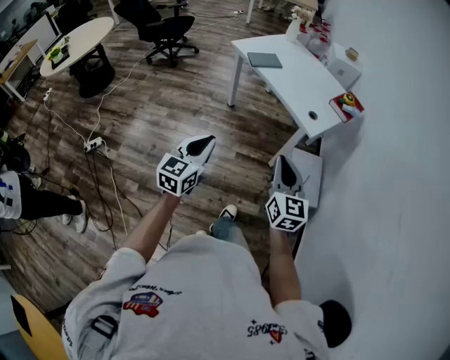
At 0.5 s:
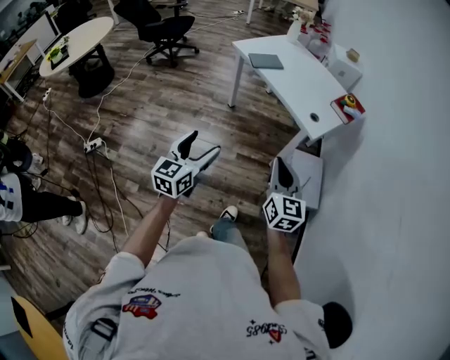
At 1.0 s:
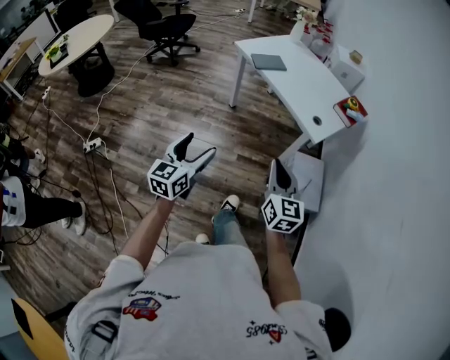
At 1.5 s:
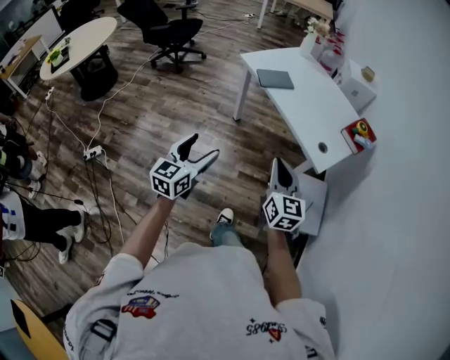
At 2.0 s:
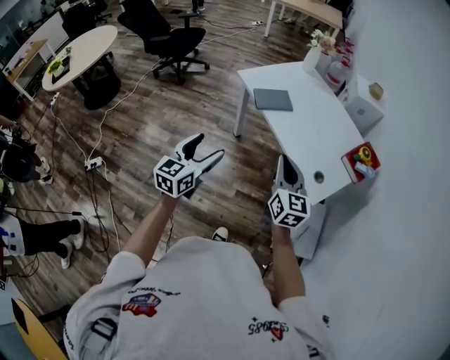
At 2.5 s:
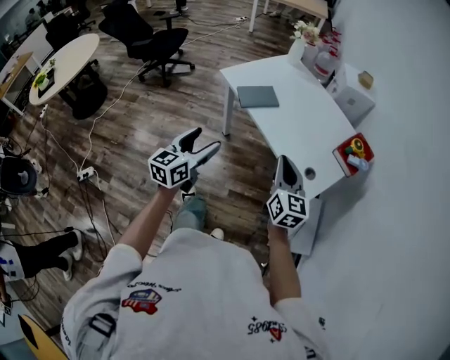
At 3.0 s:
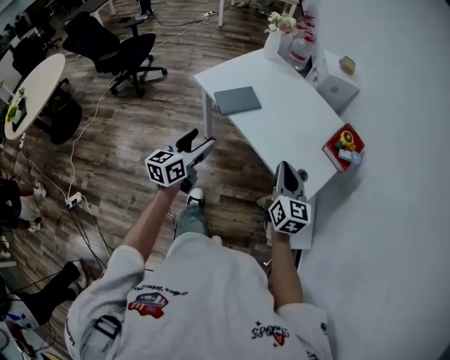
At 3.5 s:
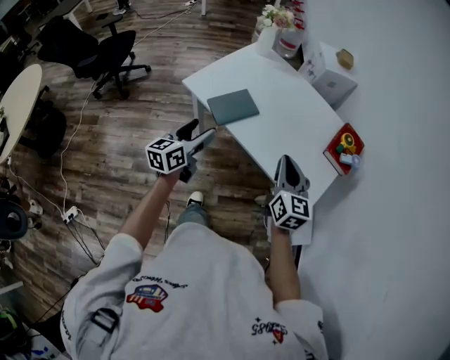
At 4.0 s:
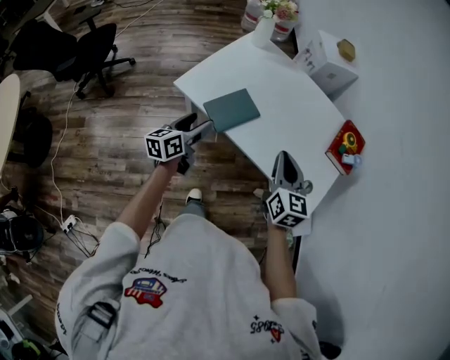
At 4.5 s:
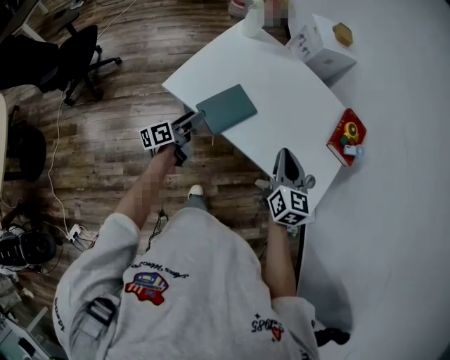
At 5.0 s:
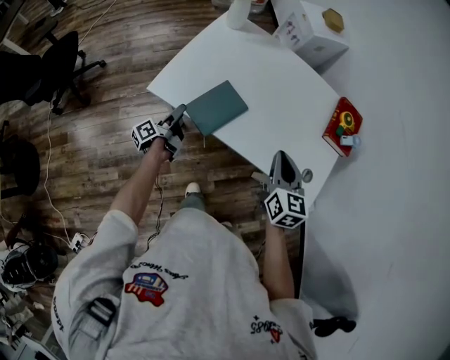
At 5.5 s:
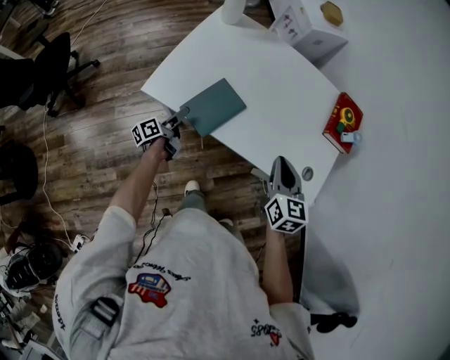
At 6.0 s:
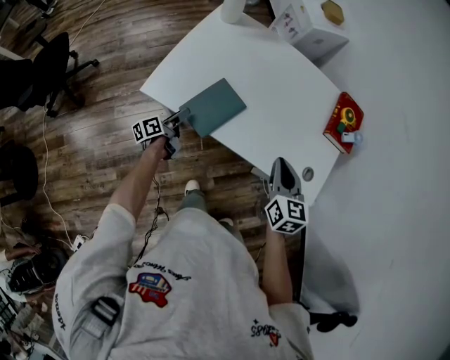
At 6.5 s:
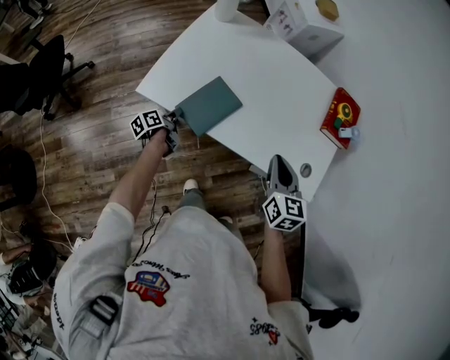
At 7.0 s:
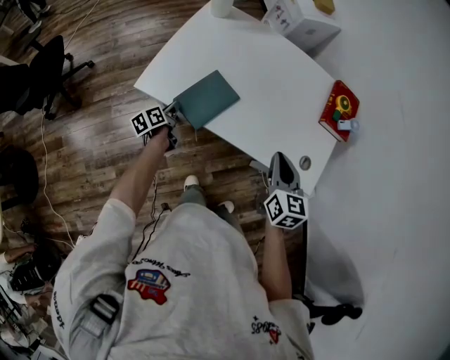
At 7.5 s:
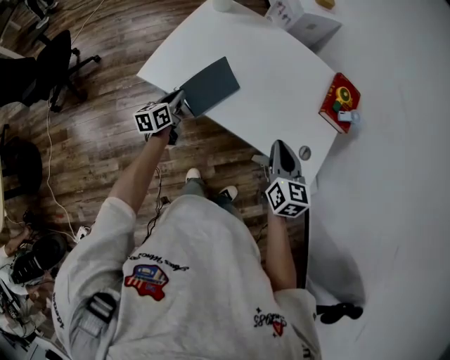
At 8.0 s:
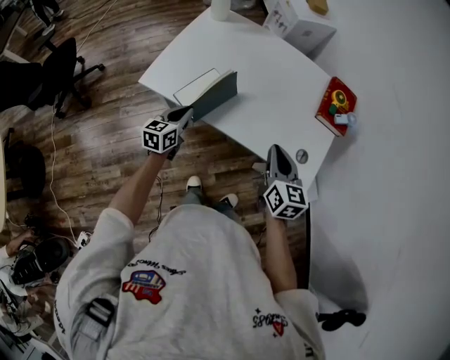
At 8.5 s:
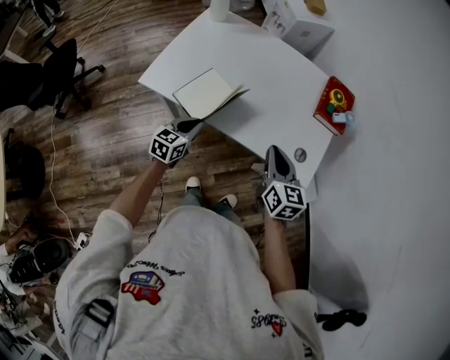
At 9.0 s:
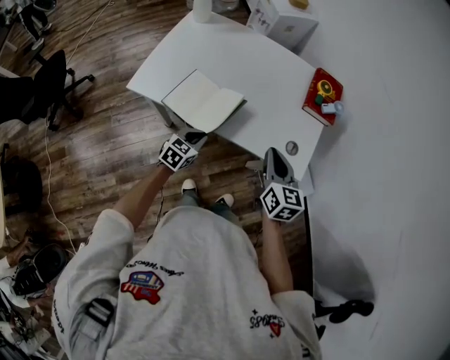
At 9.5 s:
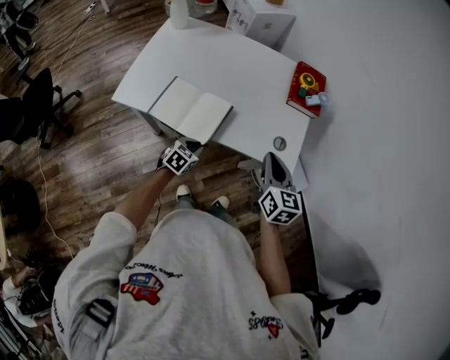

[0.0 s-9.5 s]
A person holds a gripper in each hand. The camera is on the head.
0.0 to 2.0 s: Both grippers move forward, roughly 40 cm. The left gripper opens.
2.0 to 4.0 s: The right gripper ends up roughly 35 cm from where it was, and rotates some 30 degrees; the left gripper shifts by about 50 cm, and turns by some 40 degrees.
4.0 to 5.5 s: The right gripper goes some 10 cm downward and forward. The left gripper travels downward and forward by about 25 cm, and swivels some 40 degrees.
5.5 to 7.5 s: The left gripper travels upward by some 5 cm, turns by approximately 40 degrees, and closes up, while the right gripper ends up roughly 5 cm from where it was.
7.5 to 9.5 s: The left gripper is displaced to the right by approximately 25 cm, and turns by some 60 degrees, while the right gripper shifts approximately 15 cm to the right and backward.

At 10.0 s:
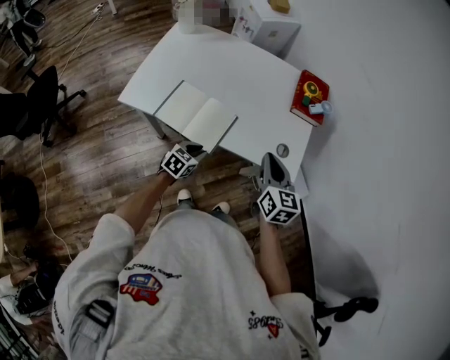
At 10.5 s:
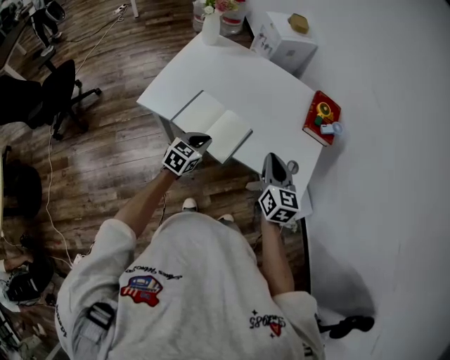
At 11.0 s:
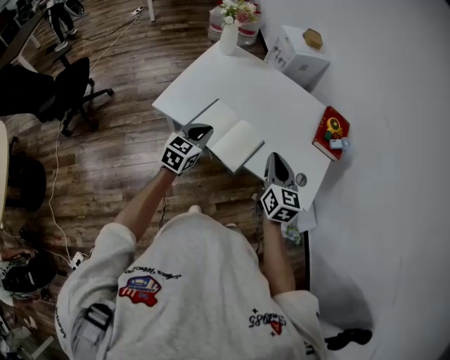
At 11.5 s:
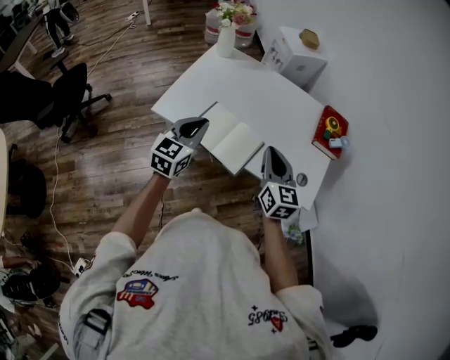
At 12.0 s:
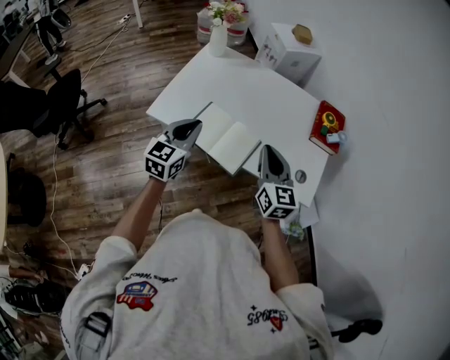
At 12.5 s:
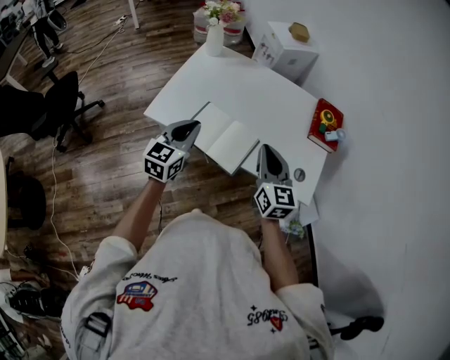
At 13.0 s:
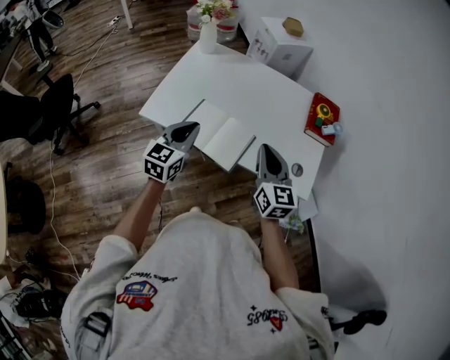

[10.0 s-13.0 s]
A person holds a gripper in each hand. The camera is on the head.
10.0 to 11.5 s: The left gripper travels upward and to the left by some 30 cm, and turns by some 40 degrees; the right gripper moves to the left, some 15 cm.
11.5 to 13.0 s: There are only small adjustments of the grippers.

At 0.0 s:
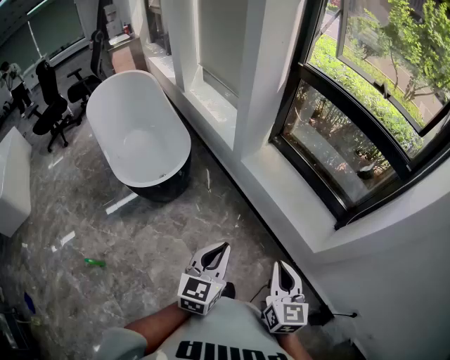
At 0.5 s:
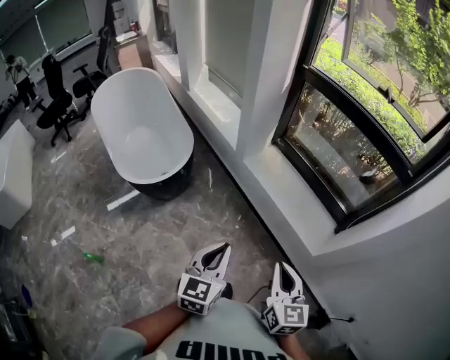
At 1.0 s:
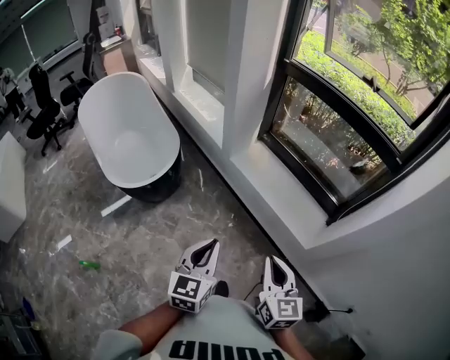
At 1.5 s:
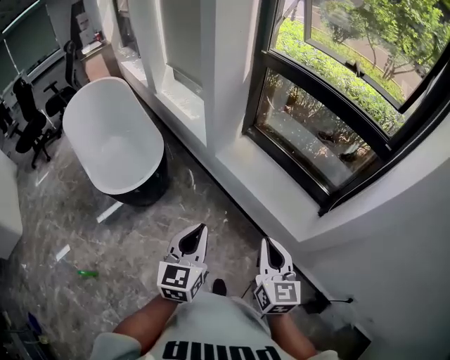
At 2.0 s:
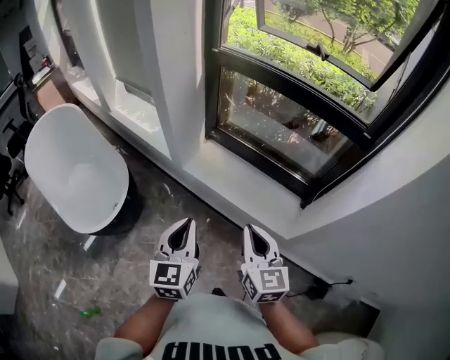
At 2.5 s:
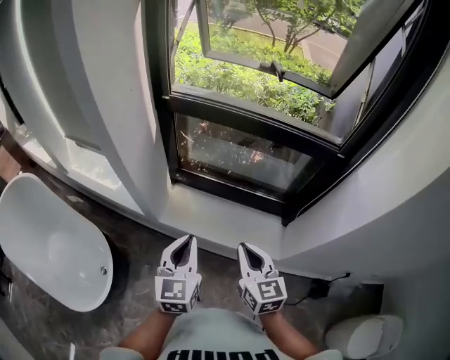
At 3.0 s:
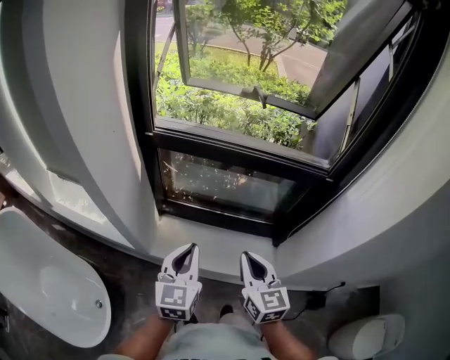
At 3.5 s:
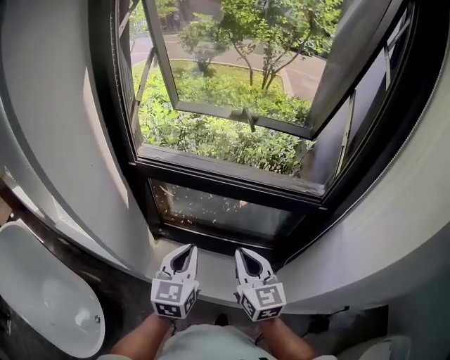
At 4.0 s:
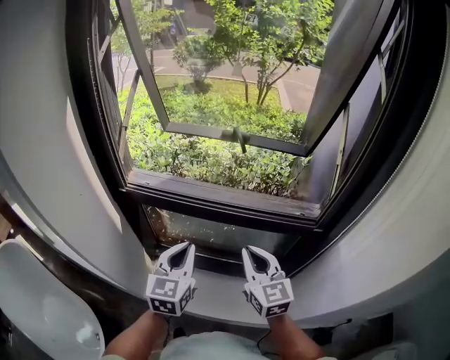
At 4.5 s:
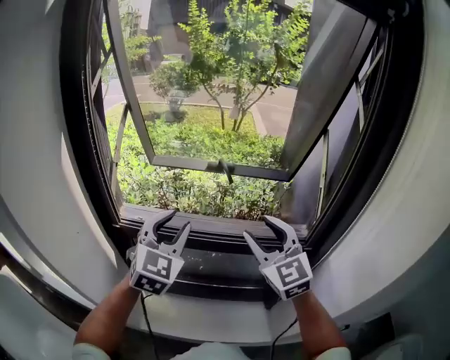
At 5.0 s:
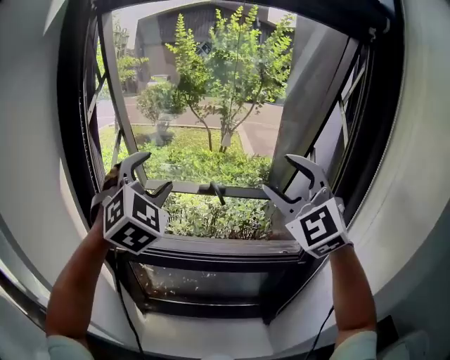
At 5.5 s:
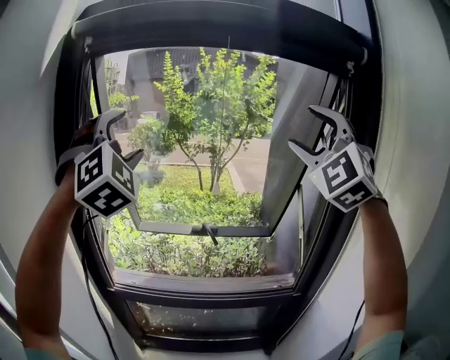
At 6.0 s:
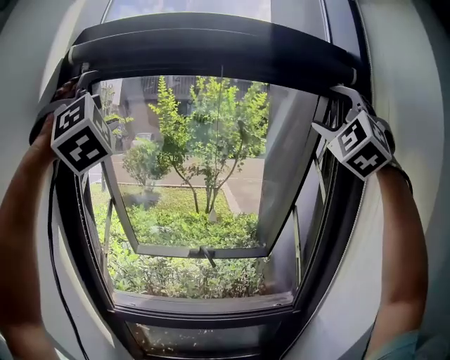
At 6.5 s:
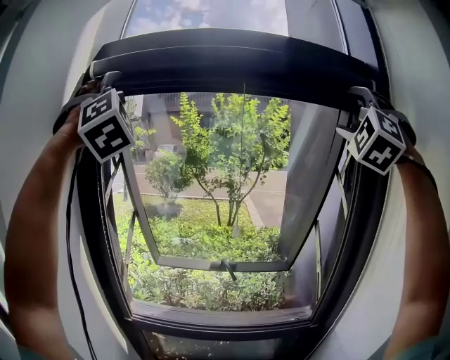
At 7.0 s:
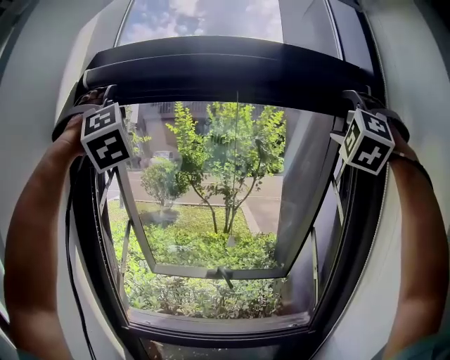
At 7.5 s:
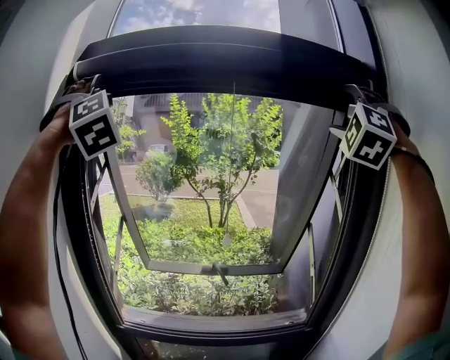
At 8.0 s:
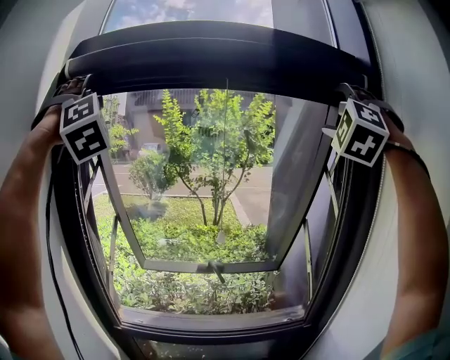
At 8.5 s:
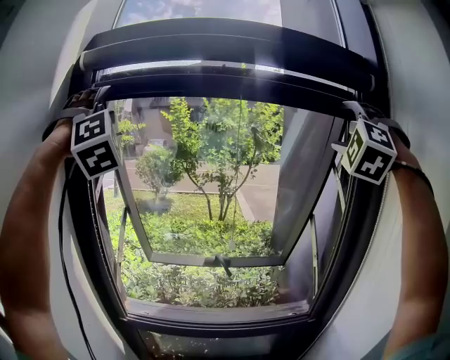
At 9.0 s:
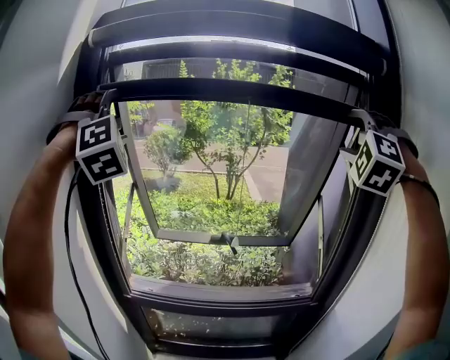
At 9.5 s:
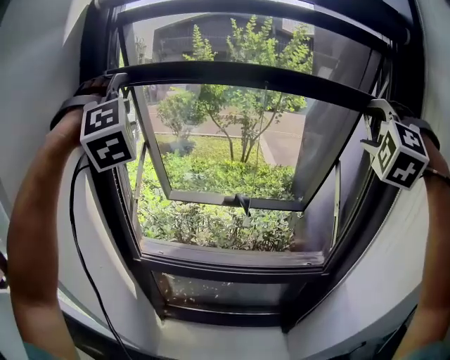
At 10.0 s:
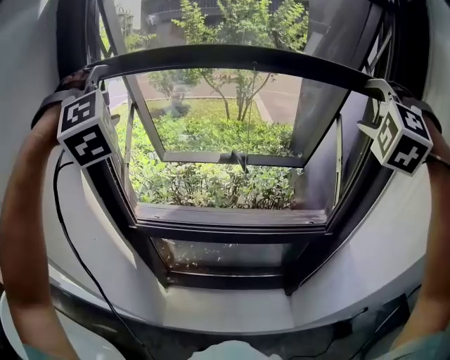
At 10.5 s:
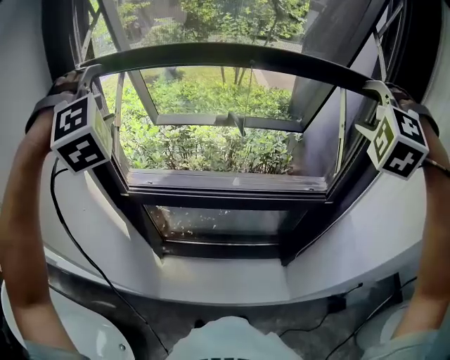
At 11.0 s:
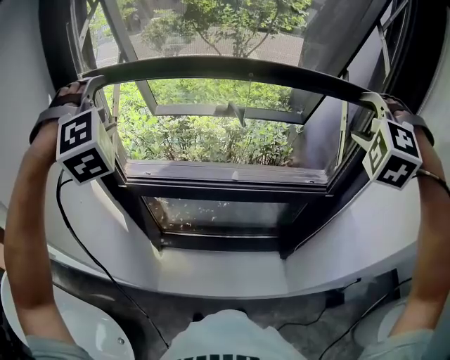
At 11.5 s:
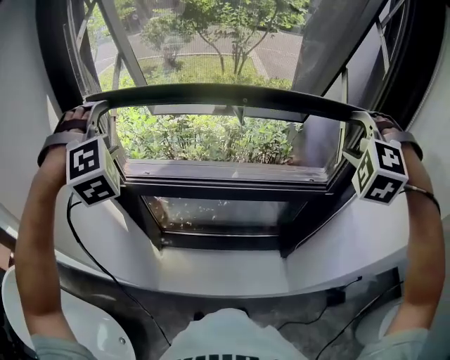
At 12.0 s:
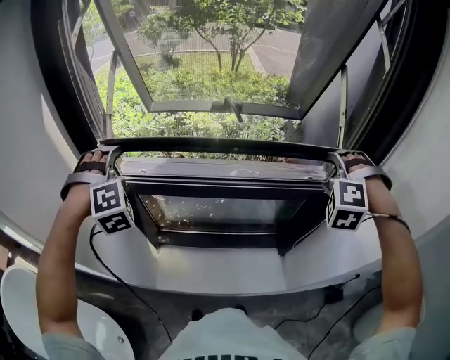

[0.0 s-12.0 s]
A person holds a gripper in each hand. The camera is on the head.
0.0 to 2.0 s: Both grippers travel together forward, approximately 15 cm.
2.0 to 4.0 s: The grippers both shift forward by about 40 cm. The left gripper rotates approximately 30 degrees.
4.0 to 6.0 s: Both grippers travel together upward, some 60 cm. The left gripper twists roughly 80 degrees clockwise, seen from behind, and opens its fingers; the right gripper rolls counterclockwise, seen from behind, by about 80 degrees, and opens its fingers.
6.0 to 8.0 s: The left gripper is displaced forward by approximately 5 cm; the right gripper ends up roughly 5 cm from where it was.
8.0 to 10.0 s: Both grippers travel together downward, roughly 25 cm. The left gripper changes its angle by roughly 20 degrees; the right gripper changes its angle by roughly 20 degrees.
10.0 to 12.0 s: The grippers both shift downward by about 35 cm. The left gripper swivels roughly 20 degrees; the right gripper swivels approximately 30 degrees.

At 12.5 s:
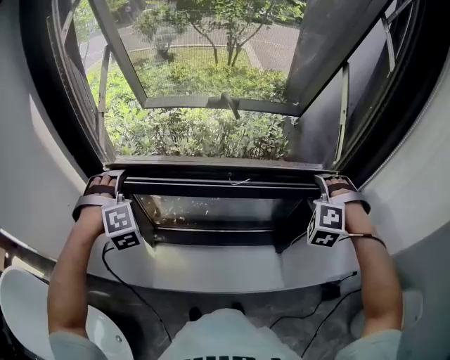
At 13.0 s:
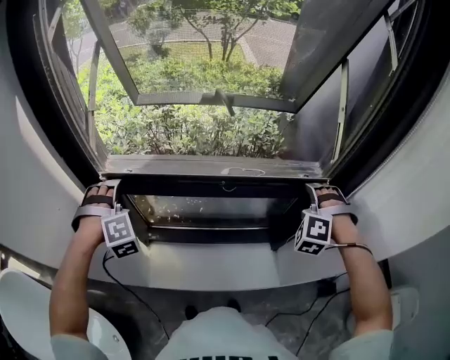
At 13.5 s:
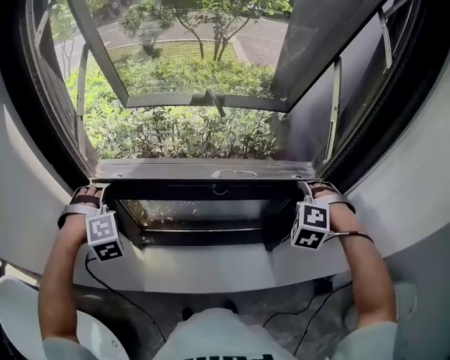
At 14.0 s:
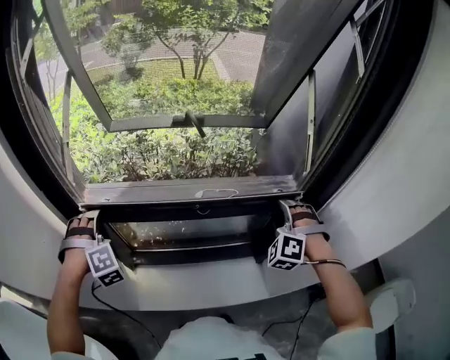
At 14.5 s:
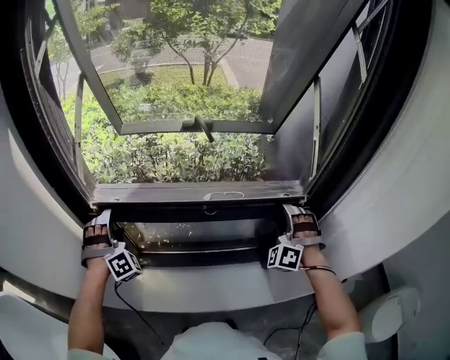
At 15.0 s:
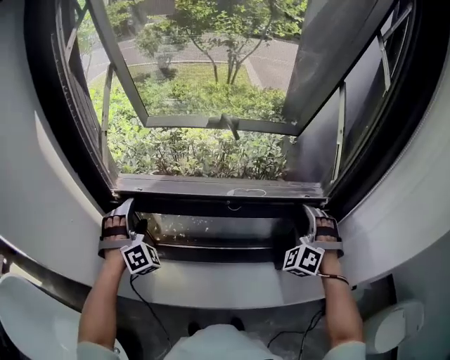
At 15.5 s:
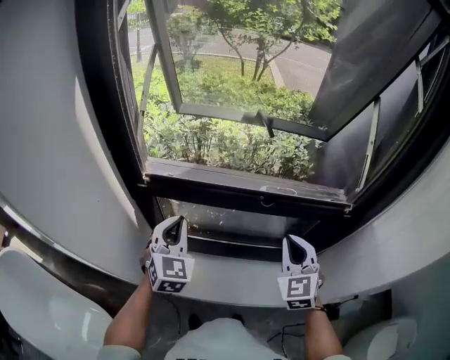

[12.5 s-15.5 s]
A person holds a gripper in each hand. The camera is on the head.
12.5 to 14.0 s: The grippers make only small movements.
14.0 to 15.5 s: The left gripper goes some 10 cm backward and to the right, rotates around the line of its fingers by about 60 degrees, counterclockwise from behind, and closes up. Meanwhile the right gripper heads to the left and backward, covering roughly 15 cm, rolls clockwise, seen from behind, by approximately 50 degrees, and closes its fingers.
